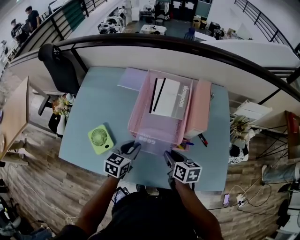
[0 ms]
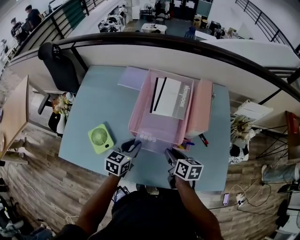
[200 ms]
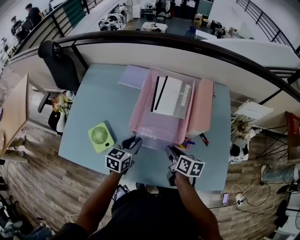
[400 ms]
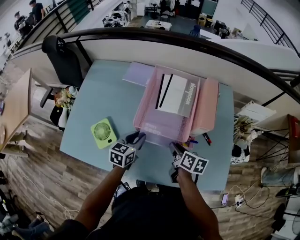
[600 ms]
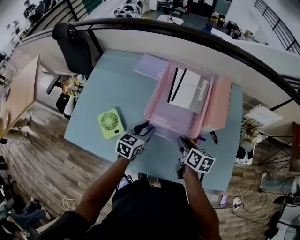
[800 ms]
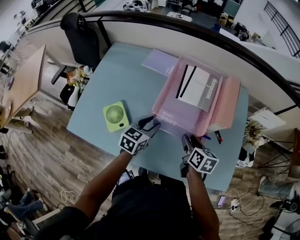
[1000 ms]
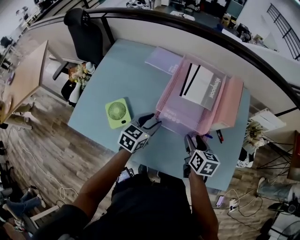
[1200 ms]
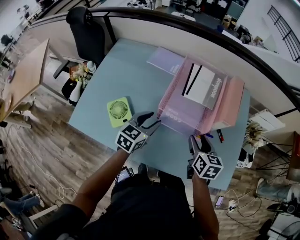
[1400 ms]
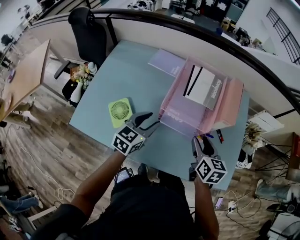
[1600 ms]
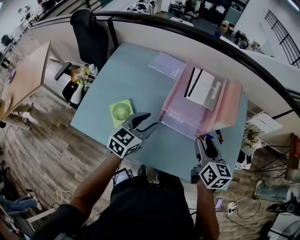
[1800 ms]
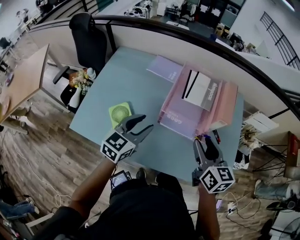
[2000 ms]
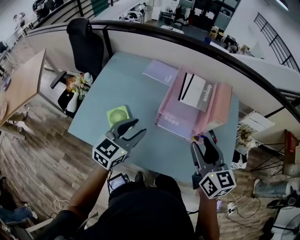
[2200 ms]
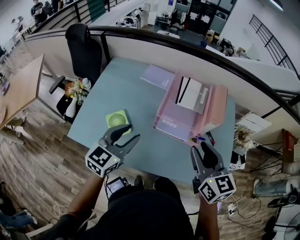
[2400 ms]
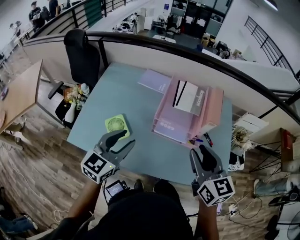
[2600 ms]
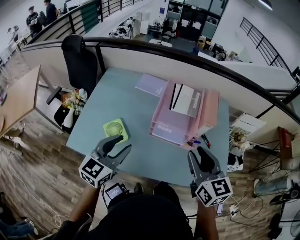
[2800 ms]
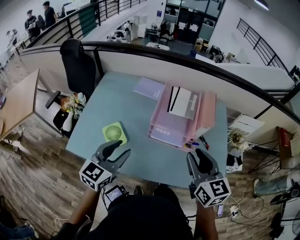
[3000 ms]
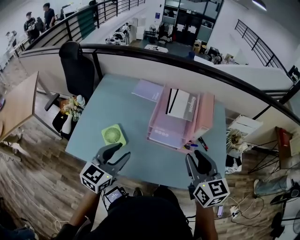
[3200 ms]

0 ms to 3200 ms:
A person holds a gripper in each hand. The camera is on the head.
0 ms to 1600 ms: Both grippers move upward, about 5 cm. The right gripper opens up.
1600 ms to 3200 ms: The left gripper is displaced backward, upward and to the left by approximately 20 cm; the right gripper travels upward and backward by some 20 cm, and changes its angle by roughly 20 degrees.

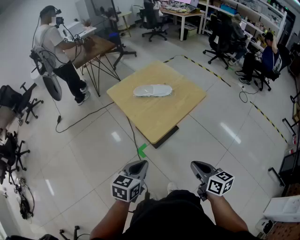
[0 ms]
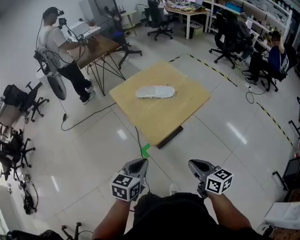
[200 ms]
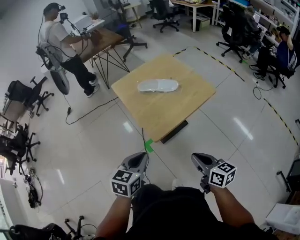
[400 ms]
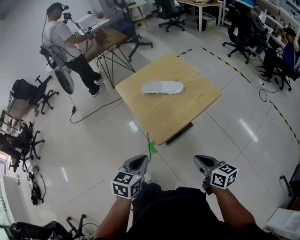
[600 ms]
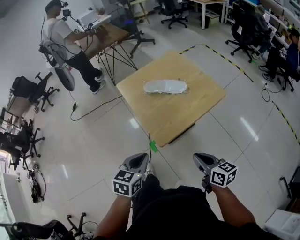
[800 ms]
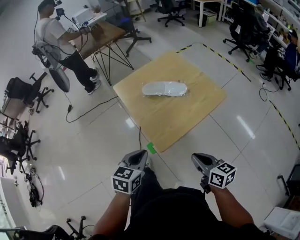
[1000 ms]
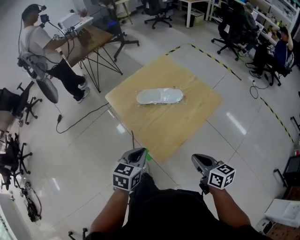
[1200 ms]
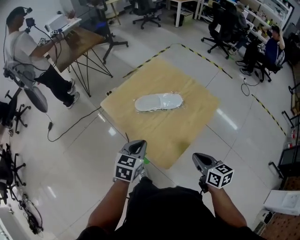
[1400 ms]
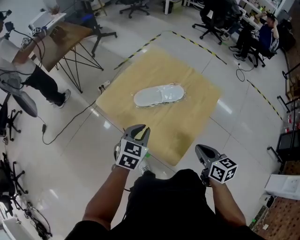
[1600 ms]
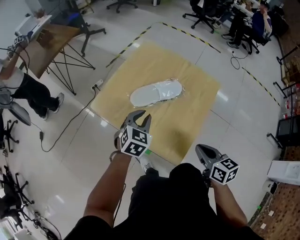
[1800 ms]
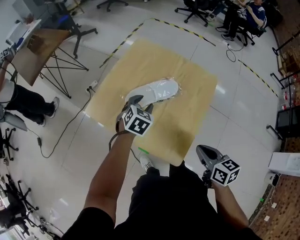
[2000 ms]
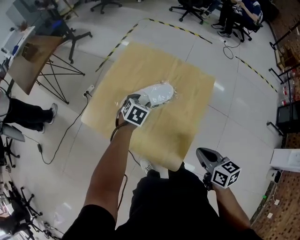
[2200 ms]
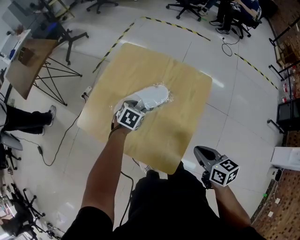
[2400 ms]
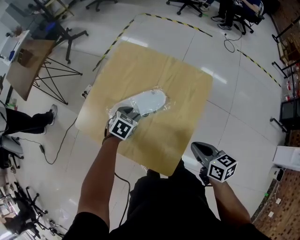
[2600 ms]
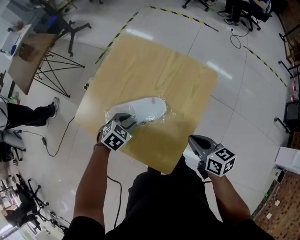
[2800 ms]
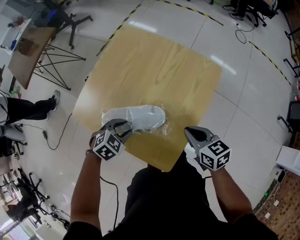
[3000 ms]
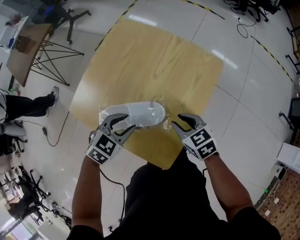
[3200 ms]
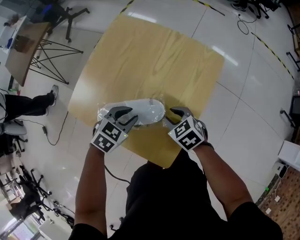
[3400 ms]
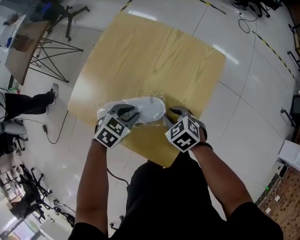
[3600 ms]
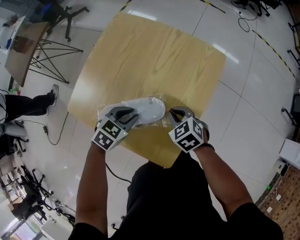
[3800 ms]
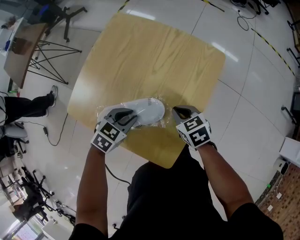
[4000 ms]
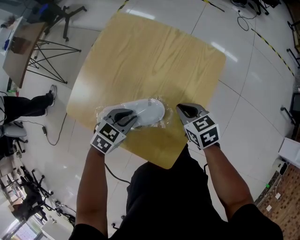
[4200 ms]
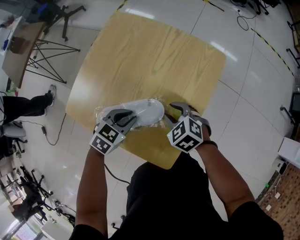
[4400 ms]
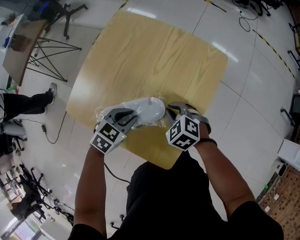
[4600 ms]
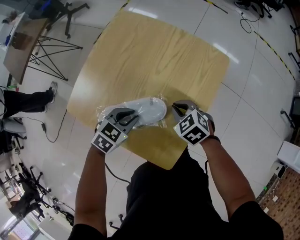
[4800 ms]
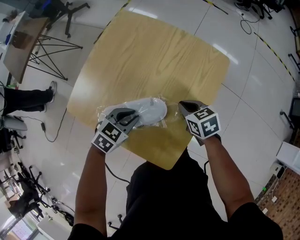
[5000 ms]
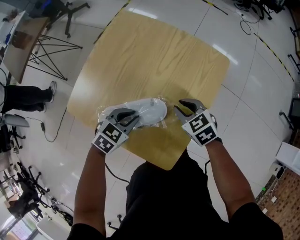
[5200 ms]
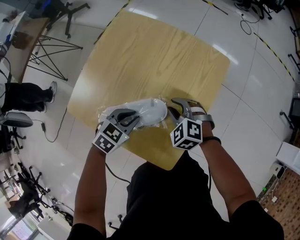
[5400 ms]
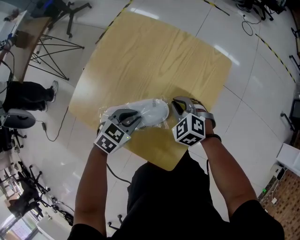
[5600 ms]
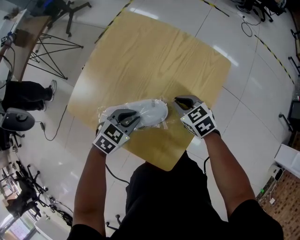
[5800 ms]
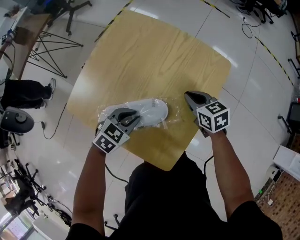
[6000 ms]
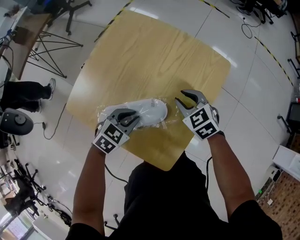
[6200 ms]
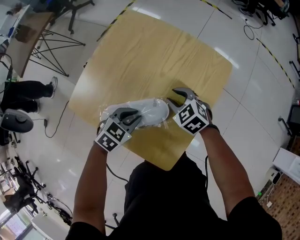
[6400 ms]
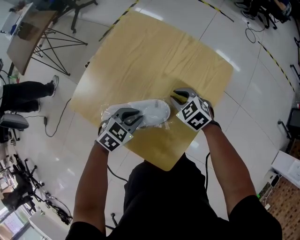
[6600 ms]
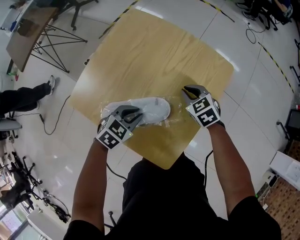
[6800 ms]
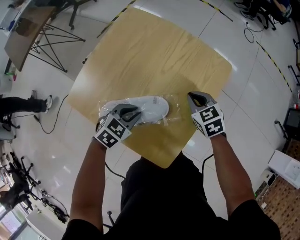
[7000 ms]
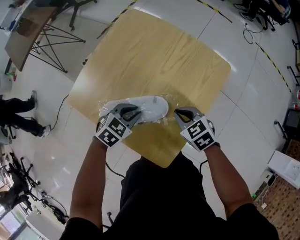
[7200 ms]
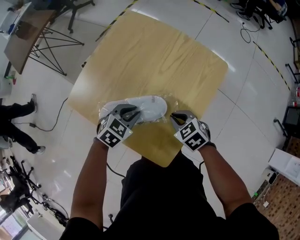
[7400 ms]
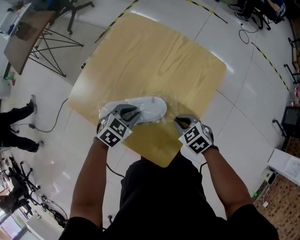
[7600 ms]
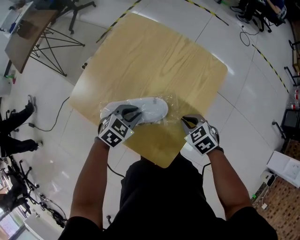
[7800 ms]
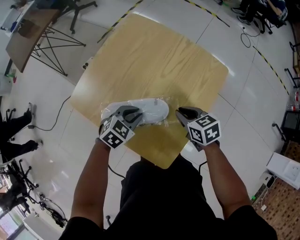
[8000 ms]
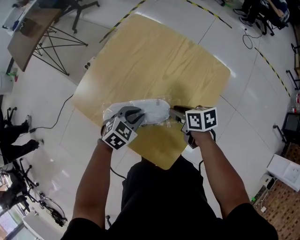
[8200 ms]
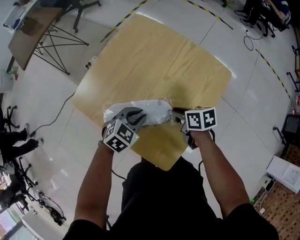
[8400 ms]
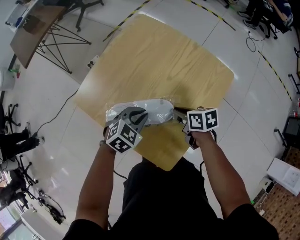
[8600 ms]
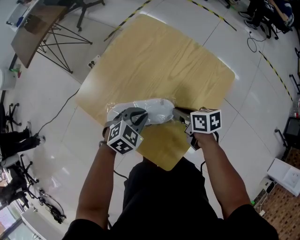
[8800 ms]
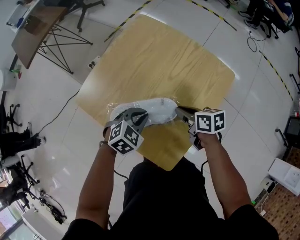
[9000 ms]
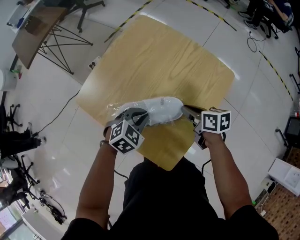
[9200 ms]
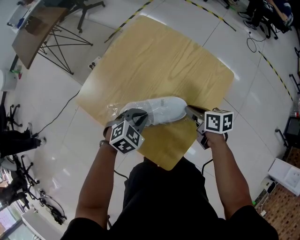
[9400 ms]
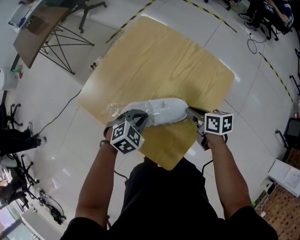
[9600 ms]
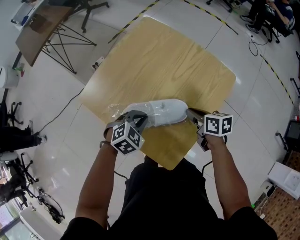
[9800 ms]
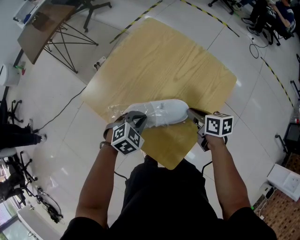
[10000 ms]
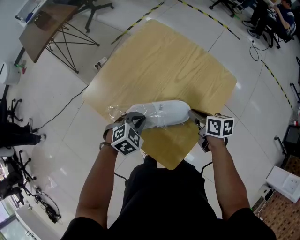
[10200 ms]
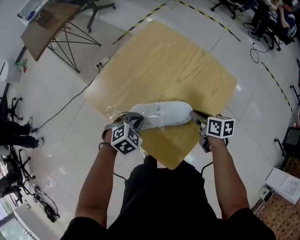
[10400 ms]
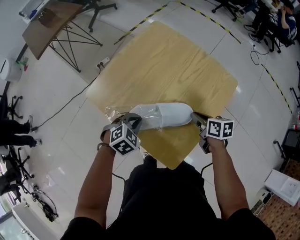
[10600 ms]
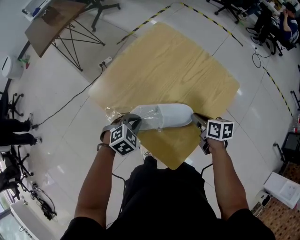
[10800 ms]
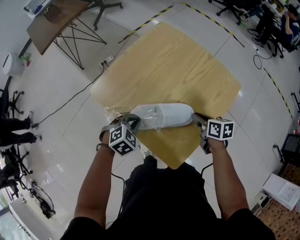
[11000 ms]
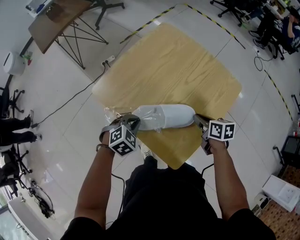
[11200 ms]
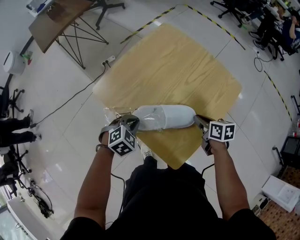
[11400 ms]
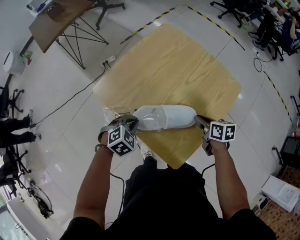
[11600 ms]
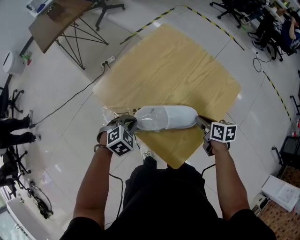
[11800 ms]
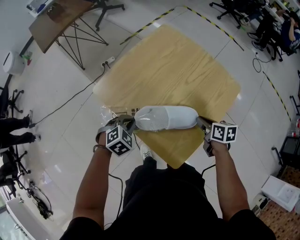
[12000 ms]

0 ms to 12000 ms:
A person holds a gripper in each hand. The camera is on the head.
0 ms to 1600 ms: The two grippers go approximately 30 cm forward. The left gripper swivels approximately 20 degrees.
1600 ms to 3000 ms: The left gripper heads downward, covering about 15 cm, travels forward and back again, roughly 20 cm each way, turns by about 40 degrees, and opens its fingers; the right gripper travels forward and downward by approximately 15 cm.
3000 ms to 4400 ms: The right gripper shifts some 10 cm downward and to the left, swivels about 40 degrees, and opens.
4400 ms to 6000 ms: The right gripper is displaced forward by approximately 10 cm, turns by roughly 30 degrees, and closes.
6000 ms to 7600 ms: The right gripper travels backward by approximately 10 cm, changes its angle by roughly 30 degrees, and opens, then closes once more.
7600 ms to 9000 ms: The right gripper travels forward by some 10 cm, rolls clockwise, seen from behind, by some 40 degrees, and opens and closes again.
9000 ms to 10400 ms: The left gripper moves to the left, some 5 cm.
10400 ms to 12000 ms: The left gripper travels to the left by approximately 10 cm.

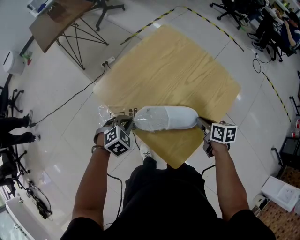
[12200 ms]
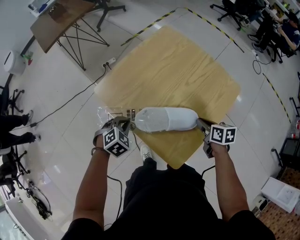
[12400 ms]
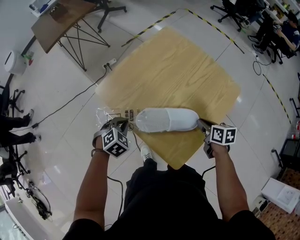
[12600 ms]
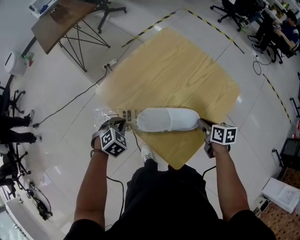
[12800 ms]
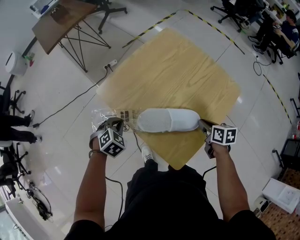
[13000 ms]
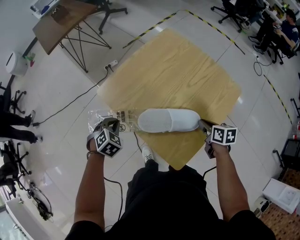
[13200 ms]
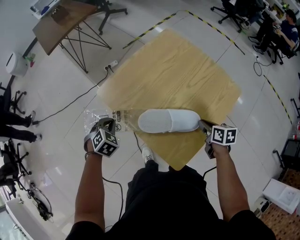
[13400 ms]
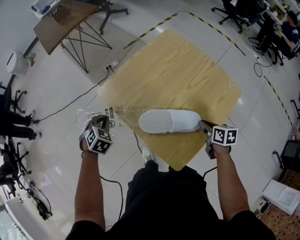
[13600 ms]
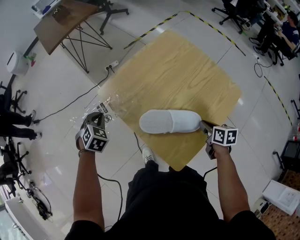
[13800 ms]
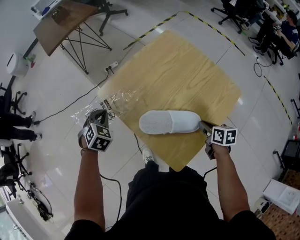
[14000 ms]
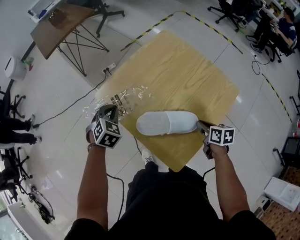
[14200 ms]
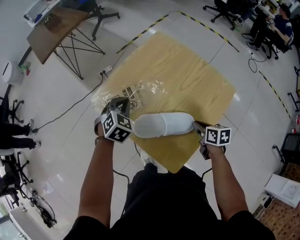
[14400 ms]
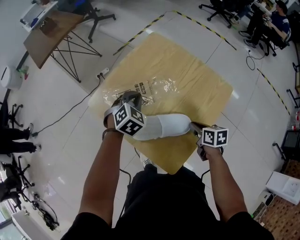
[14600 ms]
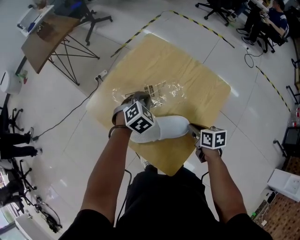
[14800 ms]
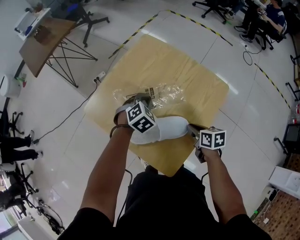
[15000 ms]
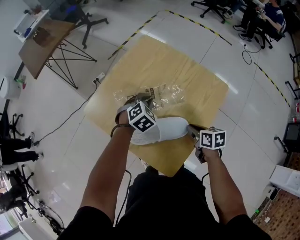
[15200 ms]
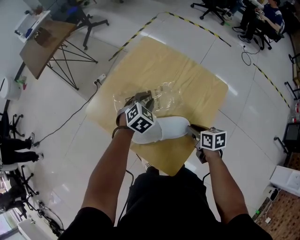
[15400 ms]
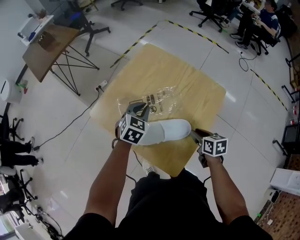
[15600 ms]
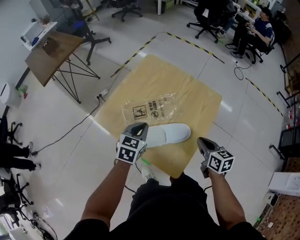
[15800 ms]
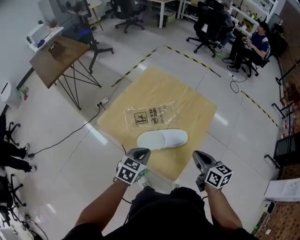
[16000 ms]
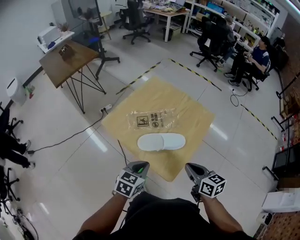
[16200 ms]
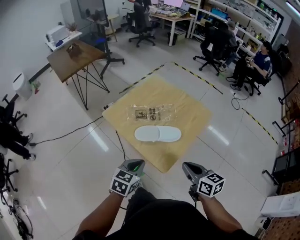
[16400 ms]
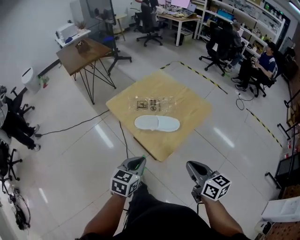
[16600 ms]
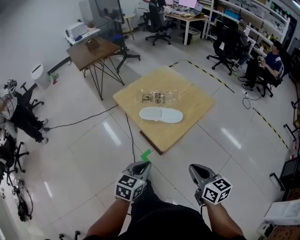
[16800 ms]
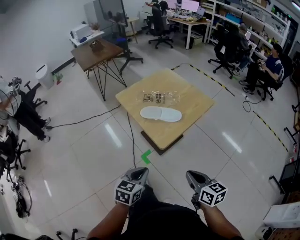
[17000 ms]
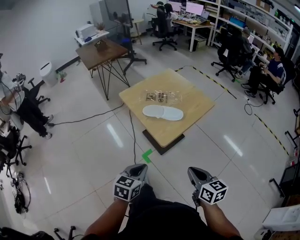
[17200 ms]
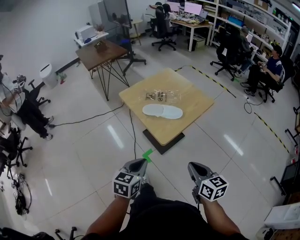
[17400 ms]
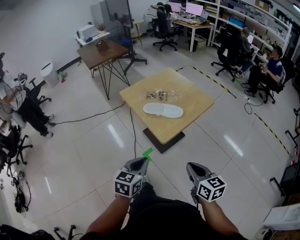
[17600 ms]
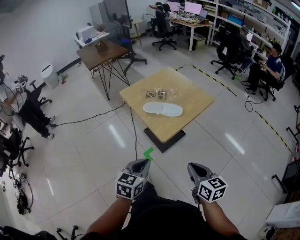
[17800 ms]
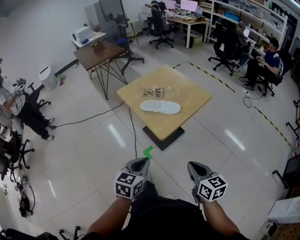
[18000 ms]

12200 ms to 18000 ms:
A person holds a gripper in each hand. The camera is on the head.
12200 ms to 13600 ms: The left gripper is displaced to the left and forward by approximately 15 cm, and turns by some 20 degrees.
13600 ms to 15000 ms: The left gripper moves to the right, some 30 cm, and changes its angle by approximately 30 degrees.
15000 ms to 16600 ms: The right gripper travels backward and upward by about 40 cm, and swivels some 40 degrees, while the left gripper goes about 40 cm backward, and twists about 40 degrees counterclockwise, seen from behind.
16600 ms to 18000 ms: The two grippers go some 15 cm backward.

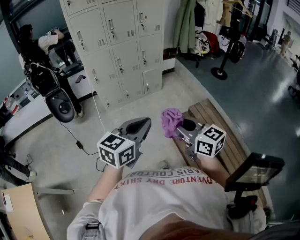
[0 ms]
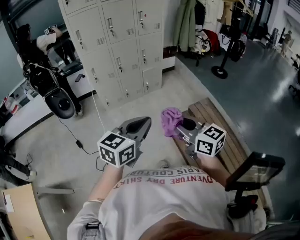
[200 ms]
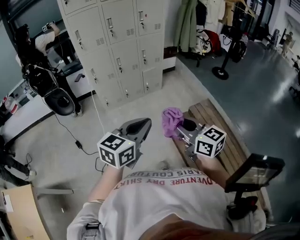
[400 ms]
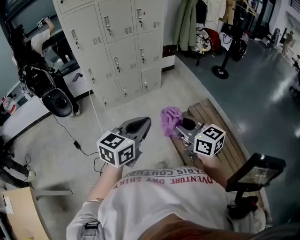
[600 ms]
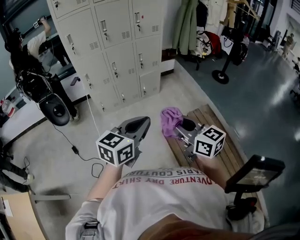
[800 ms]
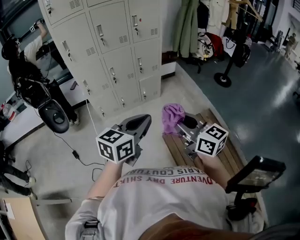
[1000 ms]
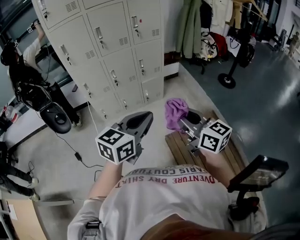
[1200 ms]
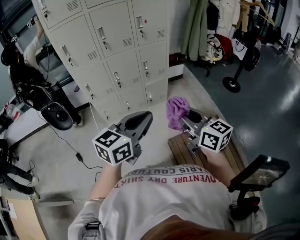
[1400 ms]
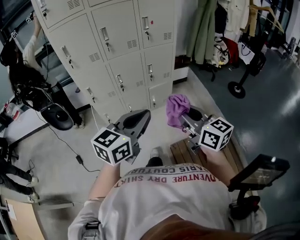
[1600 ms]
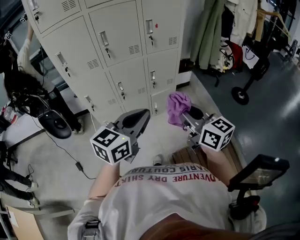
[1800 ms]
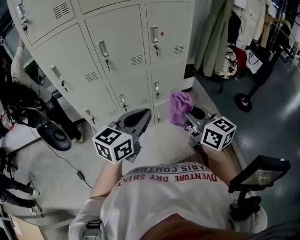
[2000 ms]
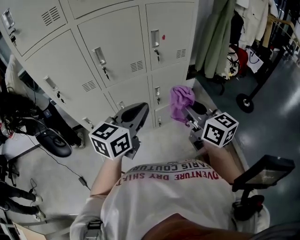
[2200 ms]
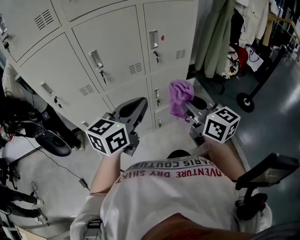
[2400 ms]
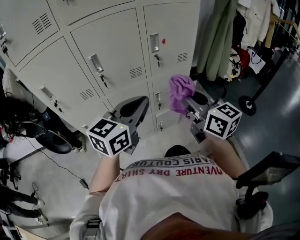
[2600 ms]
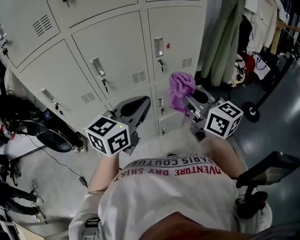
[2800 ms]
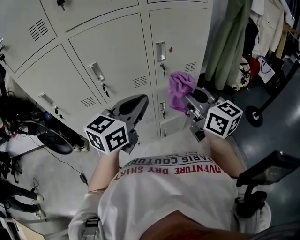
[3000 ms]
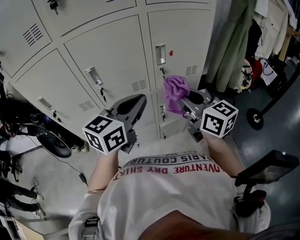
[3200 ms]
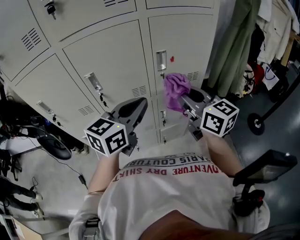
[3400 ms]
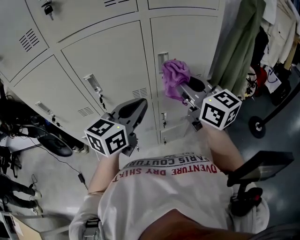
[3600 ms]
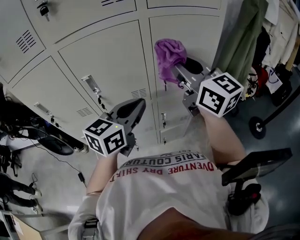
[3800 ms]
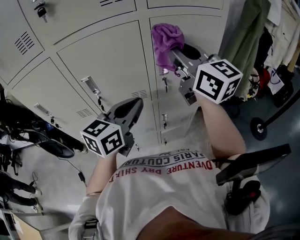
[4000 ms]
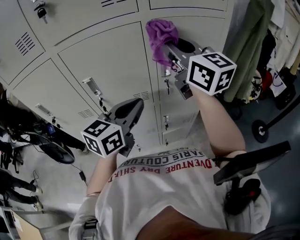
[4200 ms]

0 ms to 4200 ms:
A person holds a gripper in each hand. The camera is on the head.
0 ms to 1400 ms: The two grippers go some 30 cm forward.
1400 ms to 2800 ms: The two grippers travel together, forward, approximately 50 cm.
2800 ms to 4200 ms: The right gripper moves forward and upward, roughly 25 cm, while the left gripper heads forward, covering roughly 15 cm.
